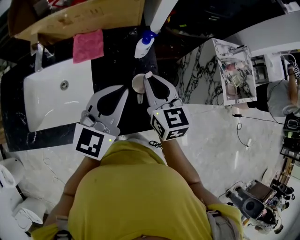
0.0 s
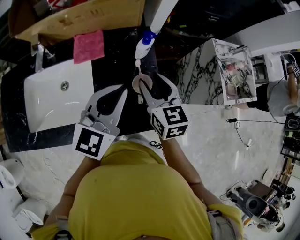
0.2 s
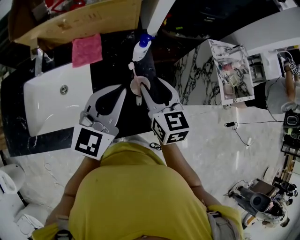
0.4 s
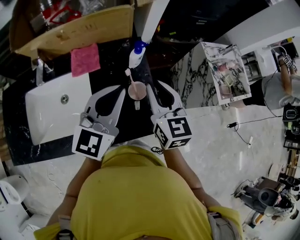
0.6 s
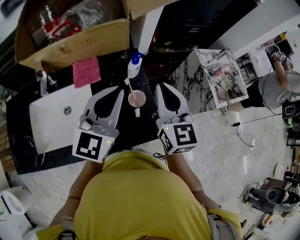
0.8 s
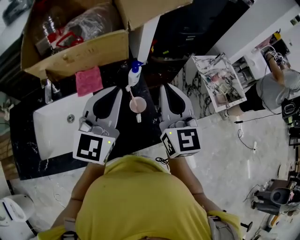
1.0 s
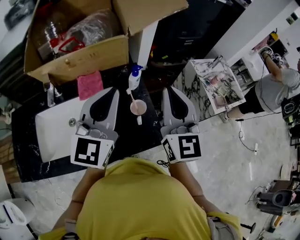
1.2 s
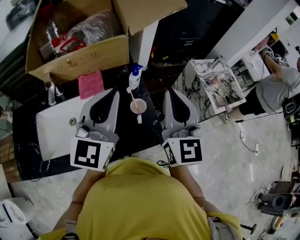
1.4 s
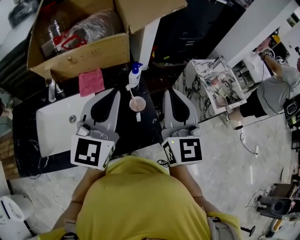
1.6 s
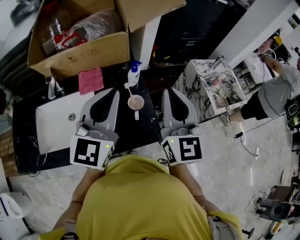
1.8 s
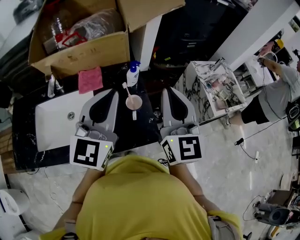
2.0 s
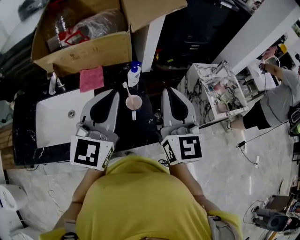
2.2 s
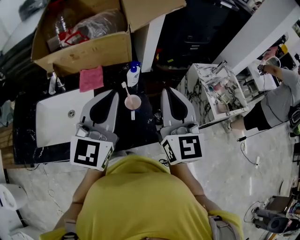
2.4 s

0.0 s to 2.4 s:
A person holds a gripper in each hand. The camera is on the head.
0.0 to 1.2 s: Both grippers travel together upward, roughly 15 cm. The right gripper rotates roughly 30 degrees, and opens and closes again.
1.2 to 2.4 s: The left gripper changes place by roughly 5 cm.

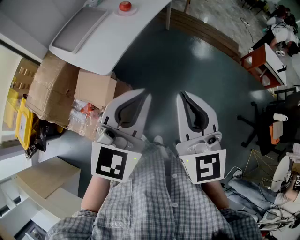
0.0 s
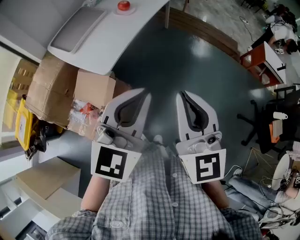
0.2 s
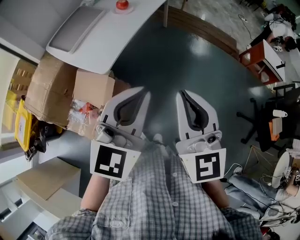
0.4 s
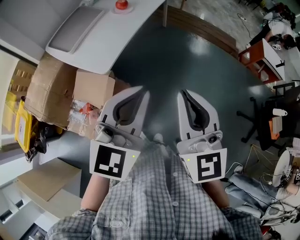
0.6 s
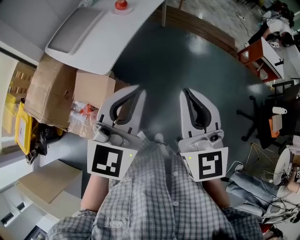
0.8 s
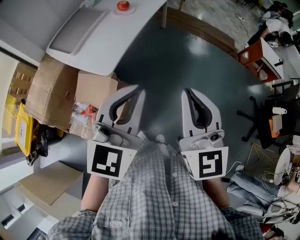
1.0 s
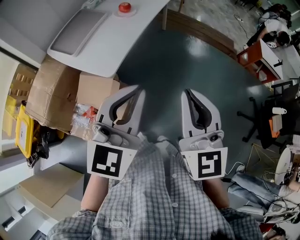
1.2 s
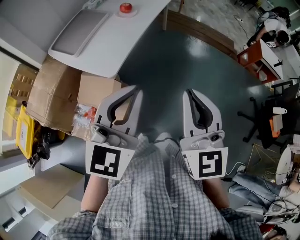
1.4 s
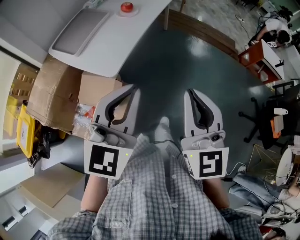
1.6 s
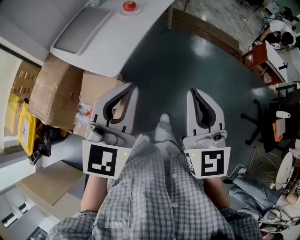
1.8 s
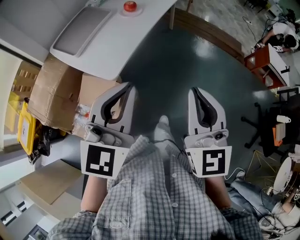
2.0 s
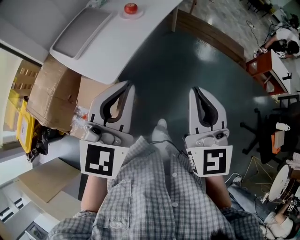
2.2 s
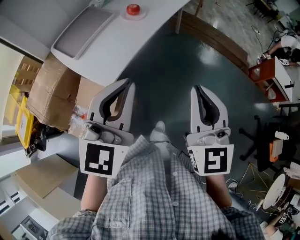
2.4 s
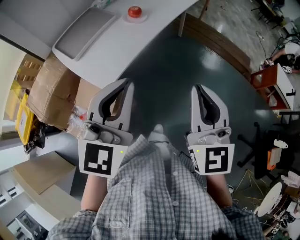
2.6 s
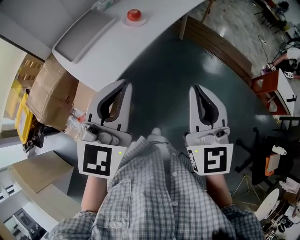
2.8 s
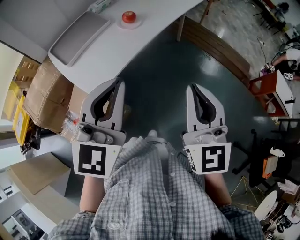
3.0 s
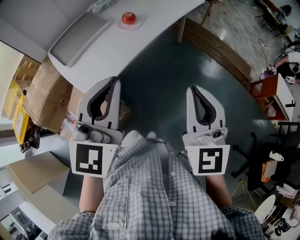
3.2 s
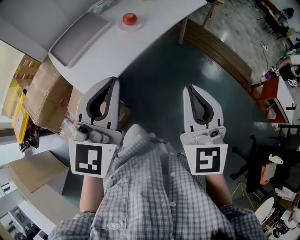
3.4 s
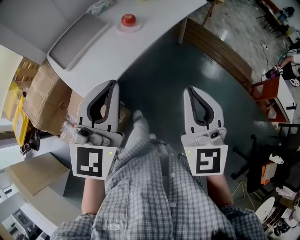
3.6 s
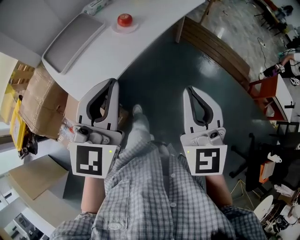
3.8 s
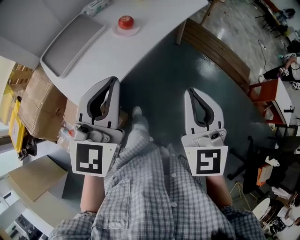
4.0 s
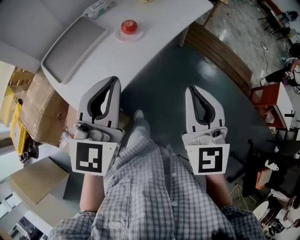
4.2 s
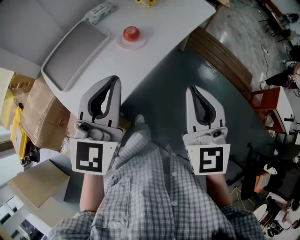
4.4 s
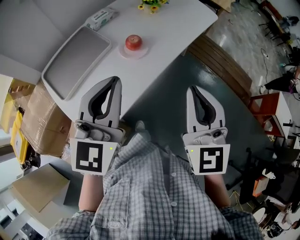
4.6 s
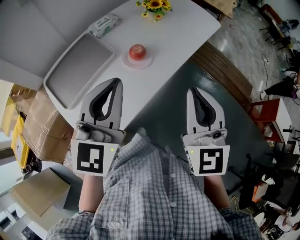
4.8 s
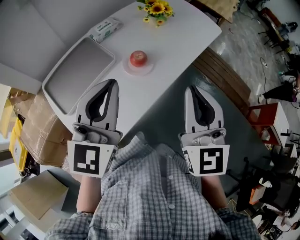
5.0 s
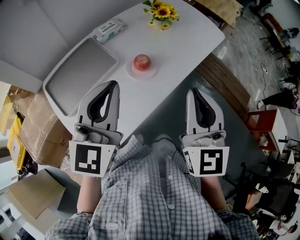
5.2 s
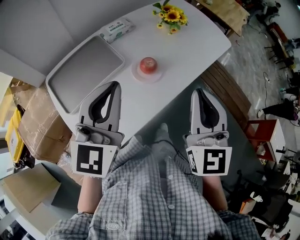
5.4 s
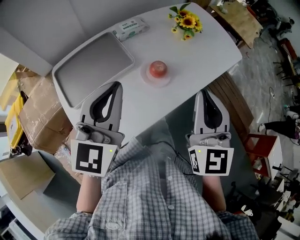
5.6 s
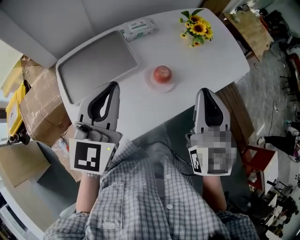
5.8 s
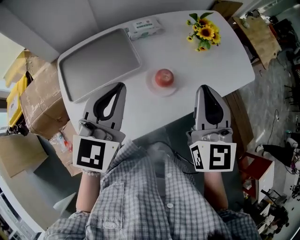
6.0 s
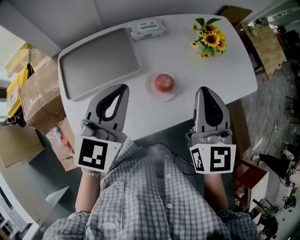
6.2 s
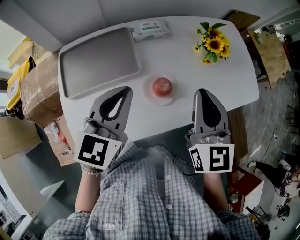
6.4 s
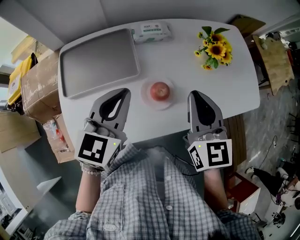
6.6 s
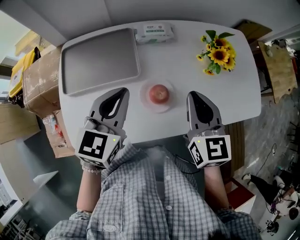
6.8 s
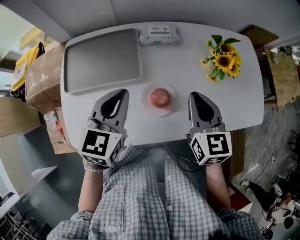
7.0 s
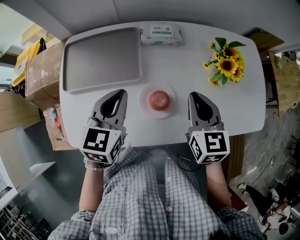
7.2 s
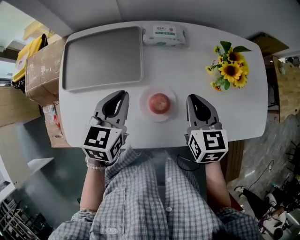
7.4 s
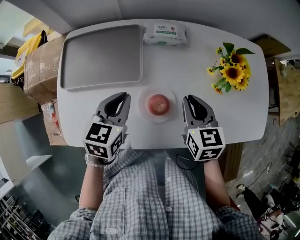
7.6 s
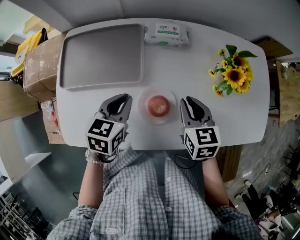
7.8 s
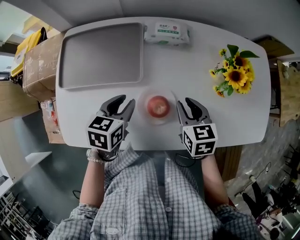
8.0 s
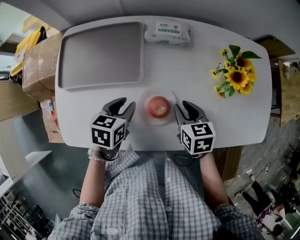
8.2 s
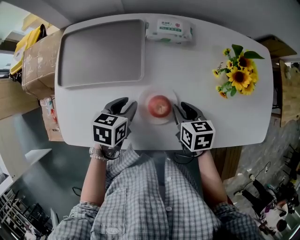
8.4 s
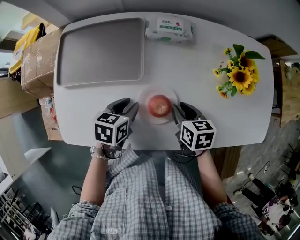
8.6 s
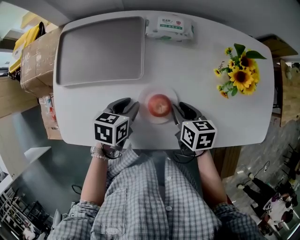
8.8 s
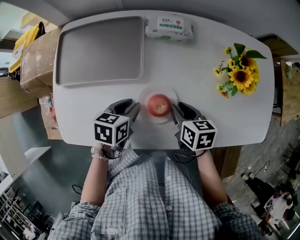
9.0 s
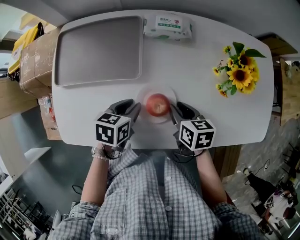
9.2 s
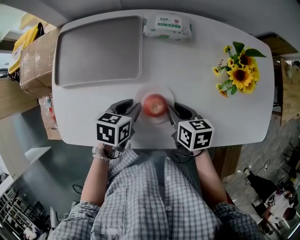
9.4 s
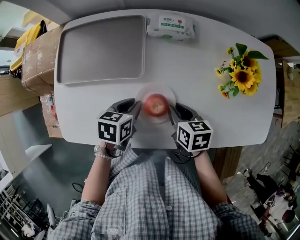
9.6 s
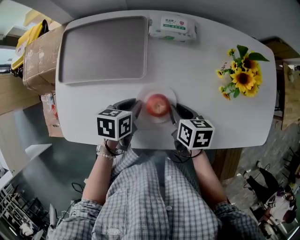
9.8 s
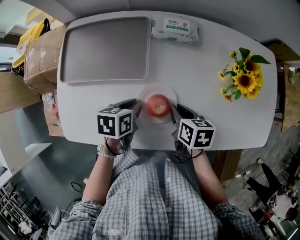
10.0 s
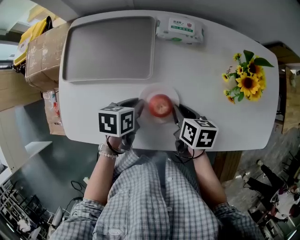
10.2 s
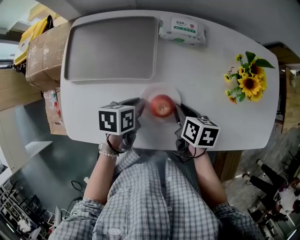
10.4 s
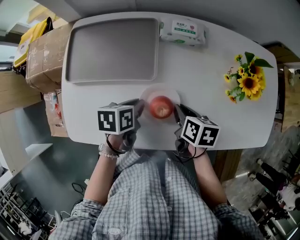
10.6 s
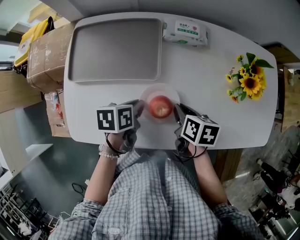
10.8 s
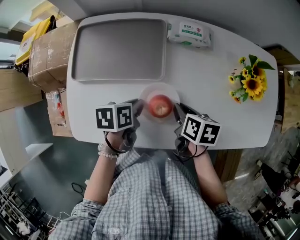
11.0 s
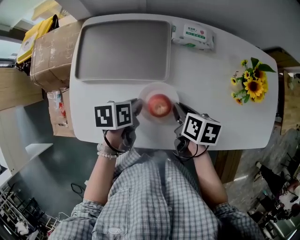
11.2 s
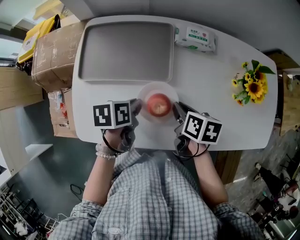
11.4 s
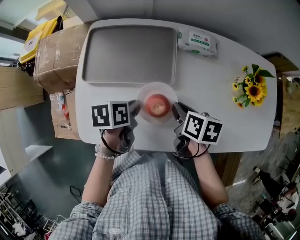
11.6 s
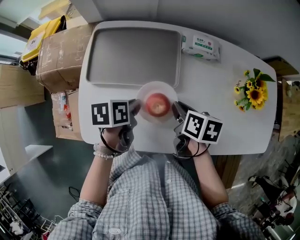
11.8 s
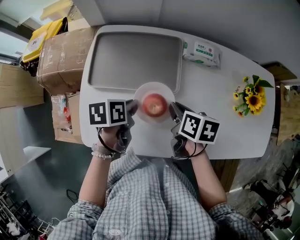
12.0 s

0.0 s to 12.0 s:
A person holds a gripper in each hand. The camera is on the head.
0.0 to 1.6 s: The left gripper moves to the left, some 5 cm.
1.6 to 3.0 s: The left gripper travels forward by about 15 cm, while the right gripper moves forward and to the right, approximately 20 cm.
3.0 to 4.4 s: The two grippers go about 20 cm forward.
4.4 to 6.0 s: The right gripper shifts roughly 30 cm forward. The left gripper heads forward and to the left, covering roughly 20 cm, and rotates some 20 degrees.
6.0 to 7.6 s: The grippers both shift downward and forward by about 20 cm. The right gripper turns by roughly 40 degrees. The left gripper swivels approximately 40 degrees.
7.6 to 9.0 s: The two grippers go some 10 cm downward. The right gripper turns by some 30 degrees. Meanwhile the left gripper rotates approximately 30 degrees, and opens.
9.0 to 10.4 s: The grippers stay close to where they were, moving slightly.
10.4 to 12.0 s: The left gripper travels to the left by roughly 10 cm, while the right gripper moves to the left and upward, approximately 15 cm.

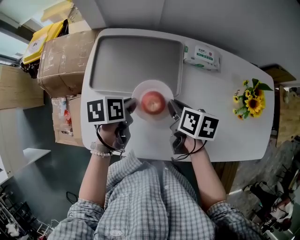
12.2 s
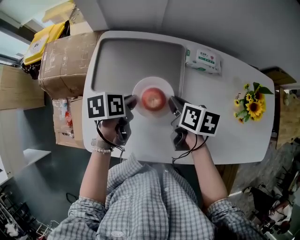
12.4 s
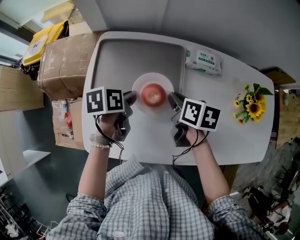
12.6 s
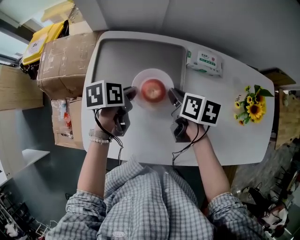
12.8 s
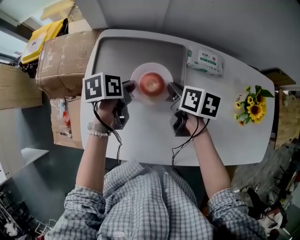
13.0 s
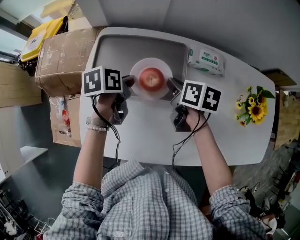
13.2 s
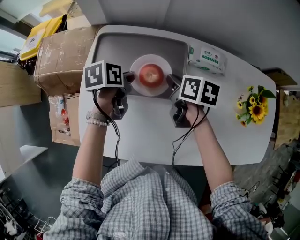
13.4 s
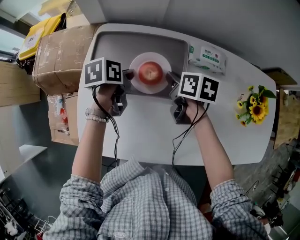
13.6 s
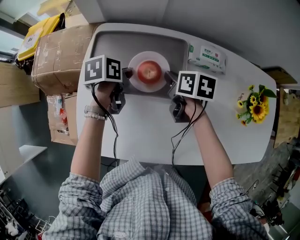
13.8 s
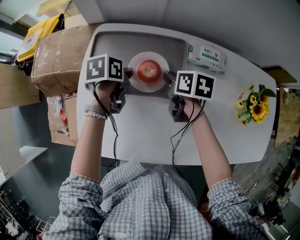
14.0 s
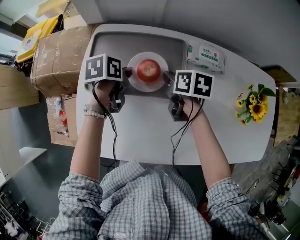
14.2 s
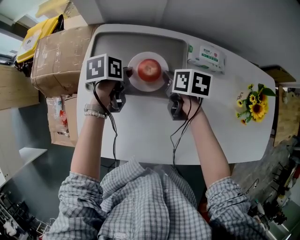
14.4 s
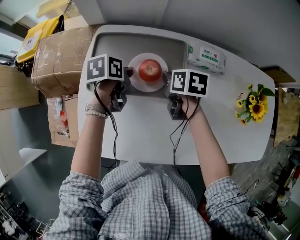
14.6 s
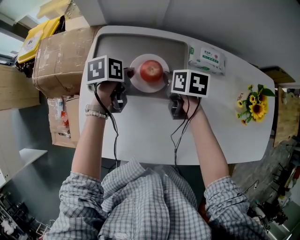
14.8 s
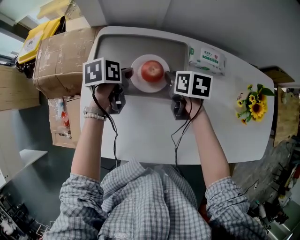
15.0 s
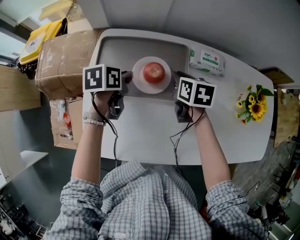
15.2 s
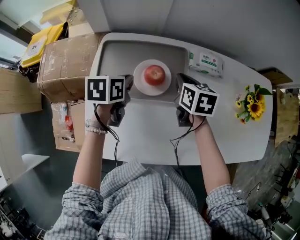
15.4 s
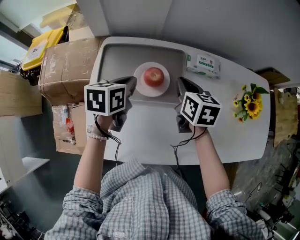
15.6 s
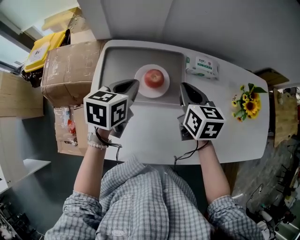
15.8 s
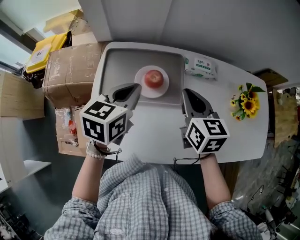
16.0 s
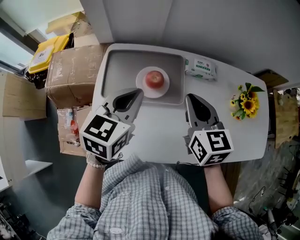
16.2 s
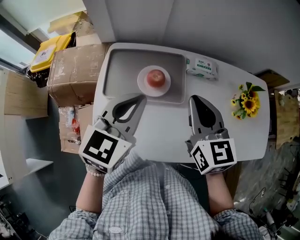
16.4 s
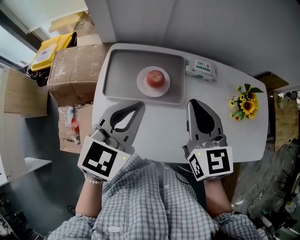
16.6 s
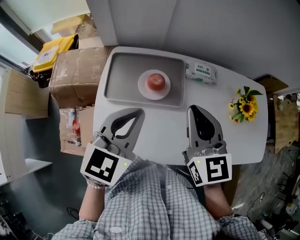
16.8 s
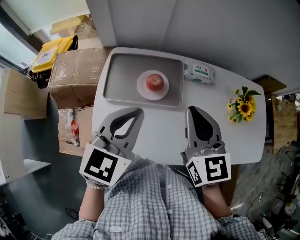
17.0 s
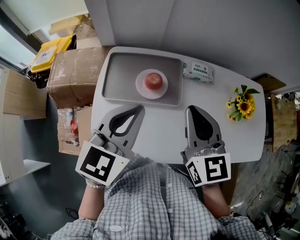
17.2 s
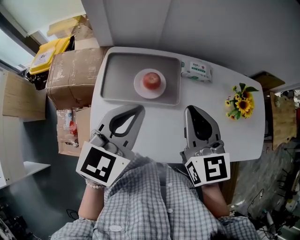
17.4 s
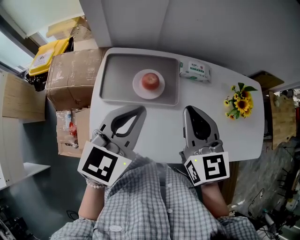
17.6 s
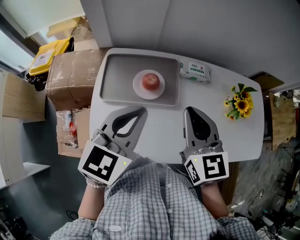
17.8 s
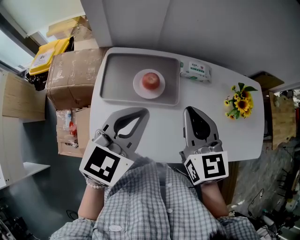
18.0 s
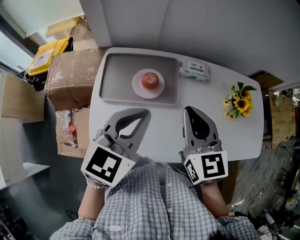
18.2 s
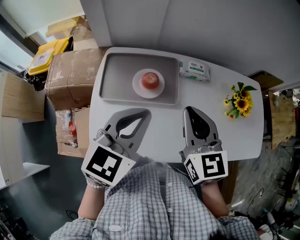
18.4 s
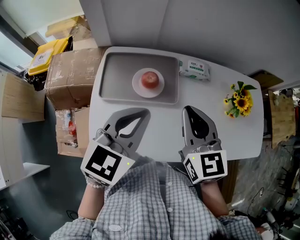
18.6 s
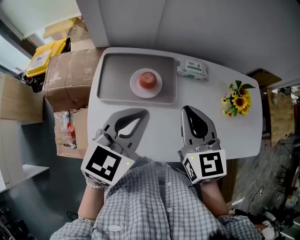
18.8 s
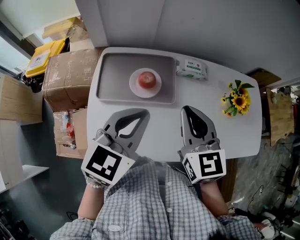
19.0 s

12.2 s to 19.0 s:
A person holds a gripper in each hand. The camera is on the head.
12.2 to 13.6 s: Both grippers move forward, about 10 cm.
13.6 to 15.0 s: The grippers move only a little.
15.0 to 16.2 s: Both grippers travel together upward and backward, roughly 25 cm. The right gripper rotates approximately 40 degrees, while the left gripper swivels approximately 50 degrees.
16.2 to 17.6 s: The right gripper moves upward and backward, roughly 10 cm, while the left gripper moves backward and upward, approximately 10 cm.
17.6 to 19.0 s: The grippers stay close to where they were, moving slightly.

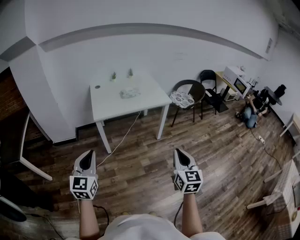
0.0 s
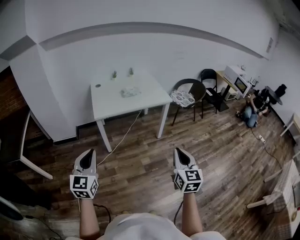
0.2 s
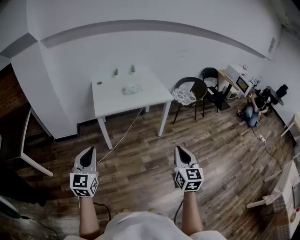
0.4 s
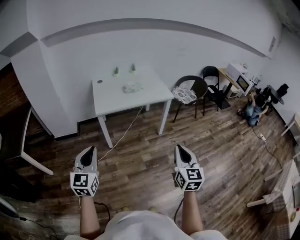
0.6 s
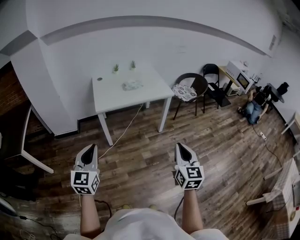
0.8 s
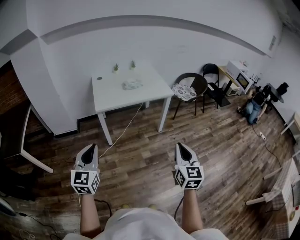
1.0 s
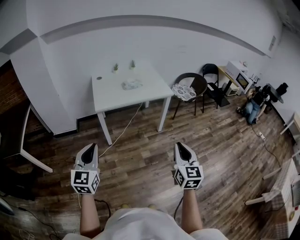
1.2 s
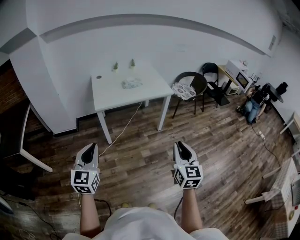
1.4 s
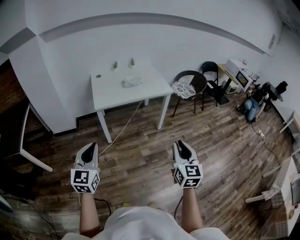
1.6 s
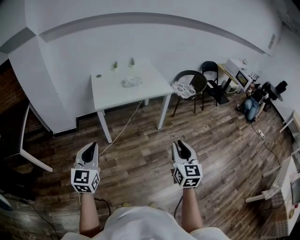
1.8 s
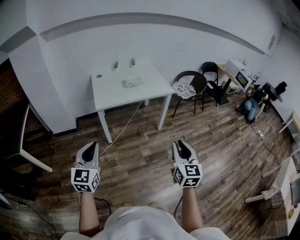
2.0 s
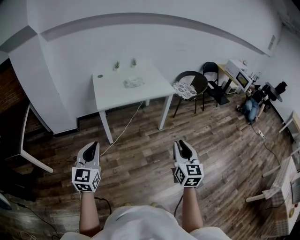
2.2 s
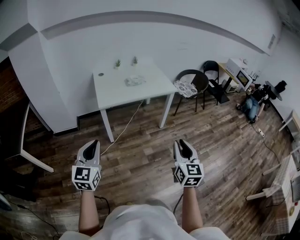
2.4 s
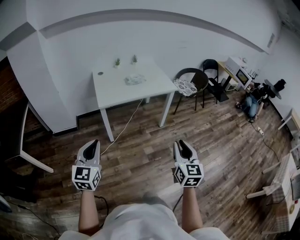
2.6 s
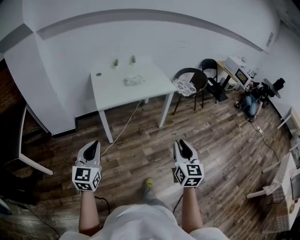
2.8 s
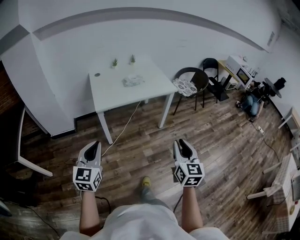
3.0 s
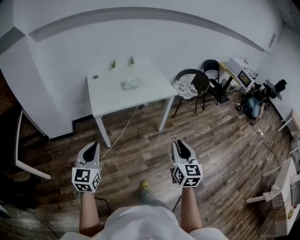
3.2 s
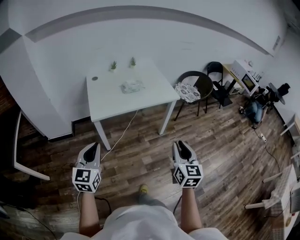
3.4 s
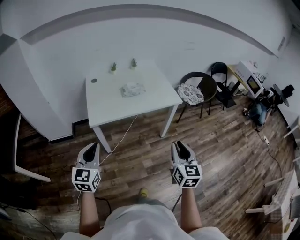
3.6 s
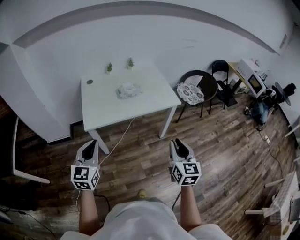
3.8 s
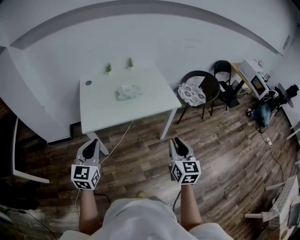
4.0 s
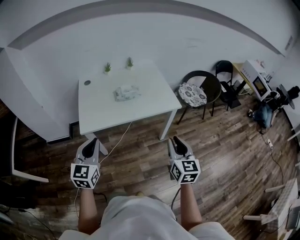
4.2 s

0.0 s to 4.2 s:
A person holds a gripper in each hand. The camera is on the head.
0.0 to 1.4 s: Both grippers stay put.
1.4 to 2.8 s: The grippers both shift to the left by some 5 cm.
2.8 to 4.2 s: Both grippers travel together forward, roughly 35 cm.
